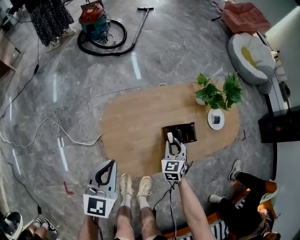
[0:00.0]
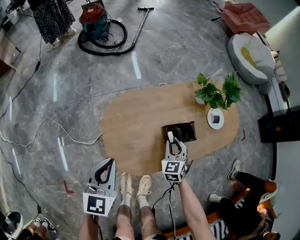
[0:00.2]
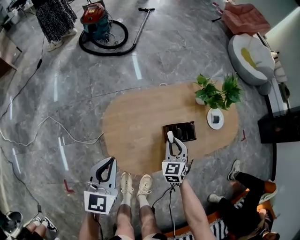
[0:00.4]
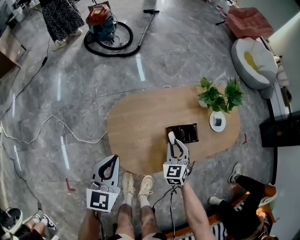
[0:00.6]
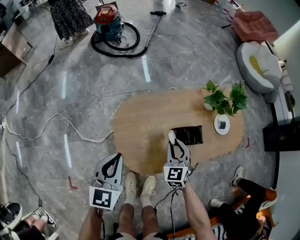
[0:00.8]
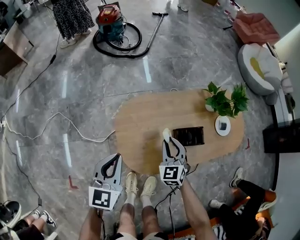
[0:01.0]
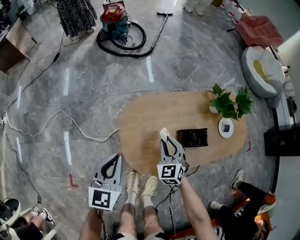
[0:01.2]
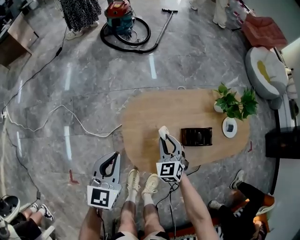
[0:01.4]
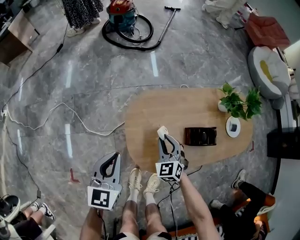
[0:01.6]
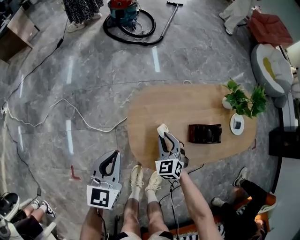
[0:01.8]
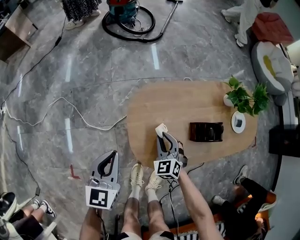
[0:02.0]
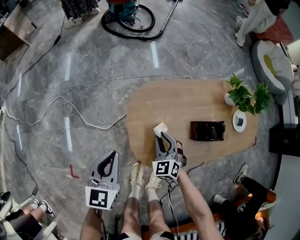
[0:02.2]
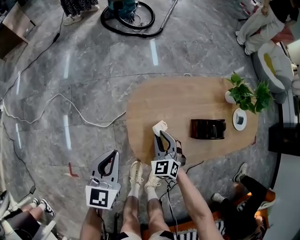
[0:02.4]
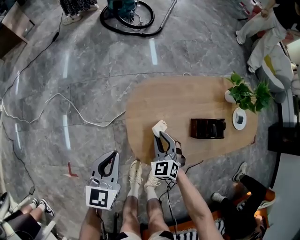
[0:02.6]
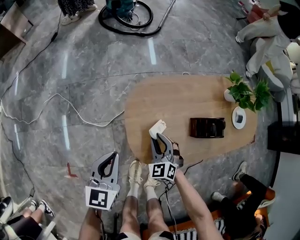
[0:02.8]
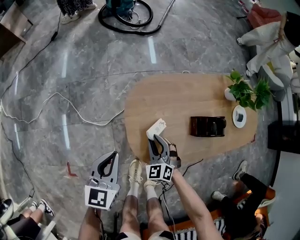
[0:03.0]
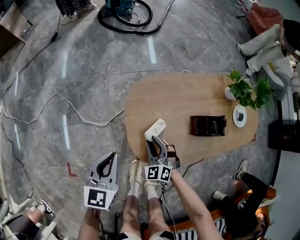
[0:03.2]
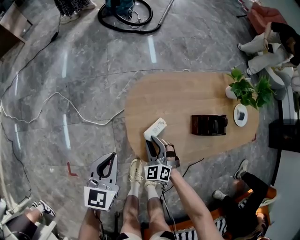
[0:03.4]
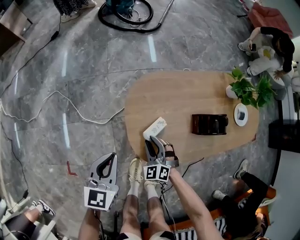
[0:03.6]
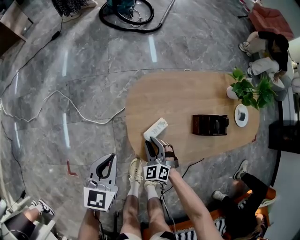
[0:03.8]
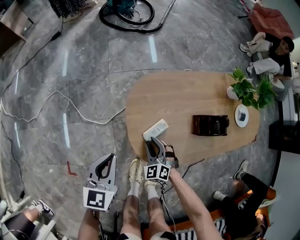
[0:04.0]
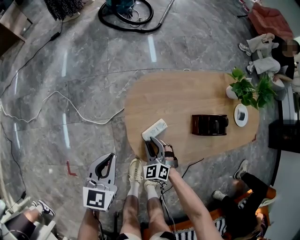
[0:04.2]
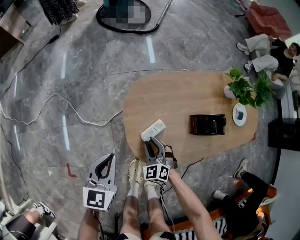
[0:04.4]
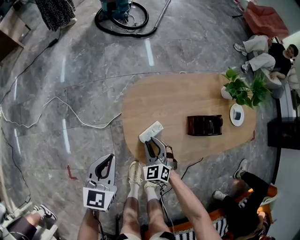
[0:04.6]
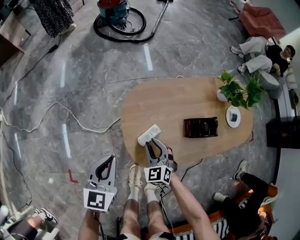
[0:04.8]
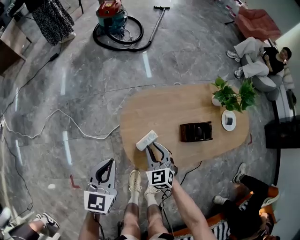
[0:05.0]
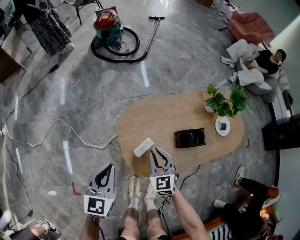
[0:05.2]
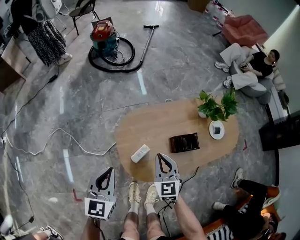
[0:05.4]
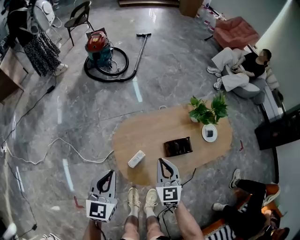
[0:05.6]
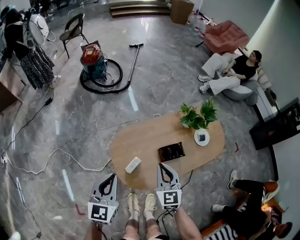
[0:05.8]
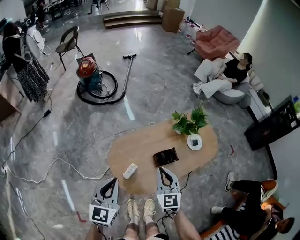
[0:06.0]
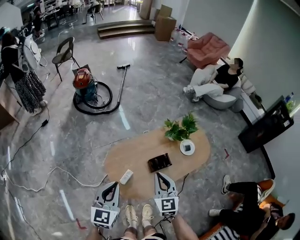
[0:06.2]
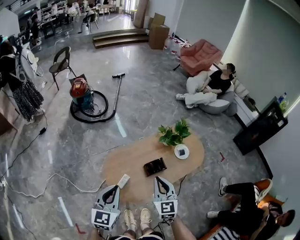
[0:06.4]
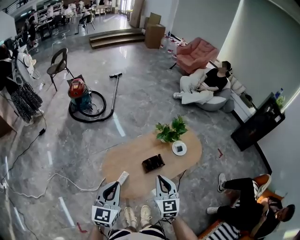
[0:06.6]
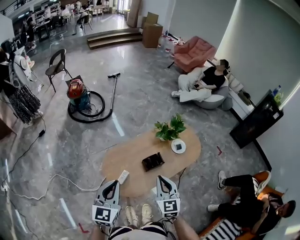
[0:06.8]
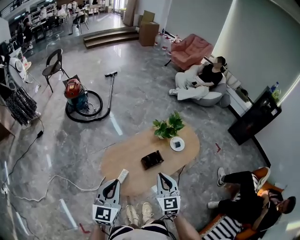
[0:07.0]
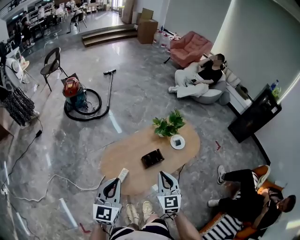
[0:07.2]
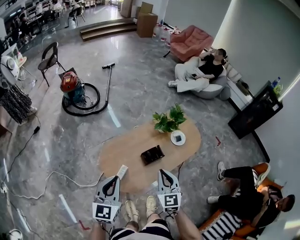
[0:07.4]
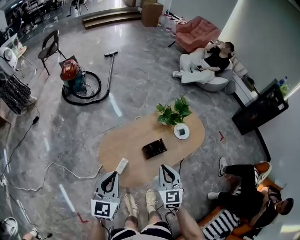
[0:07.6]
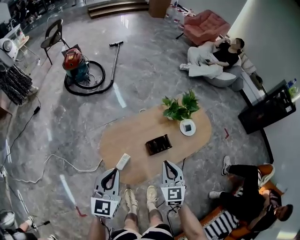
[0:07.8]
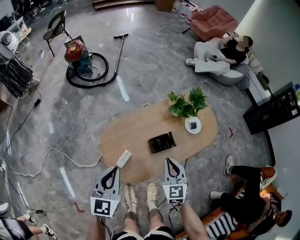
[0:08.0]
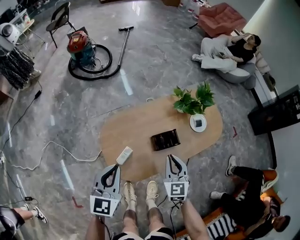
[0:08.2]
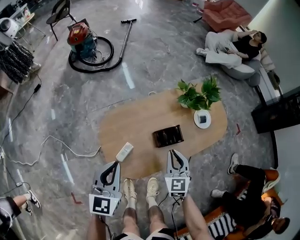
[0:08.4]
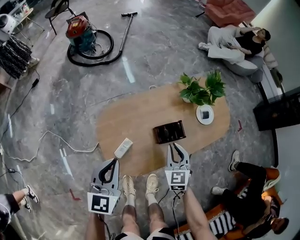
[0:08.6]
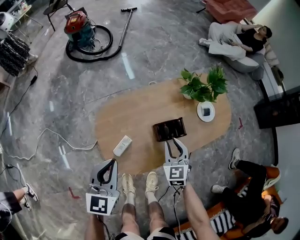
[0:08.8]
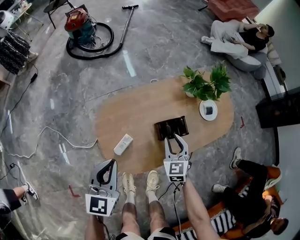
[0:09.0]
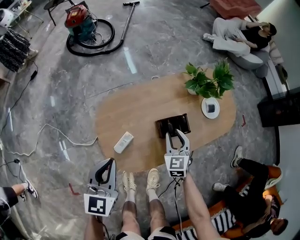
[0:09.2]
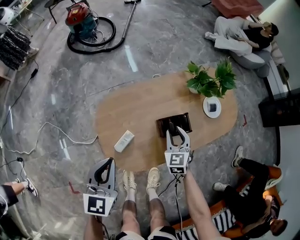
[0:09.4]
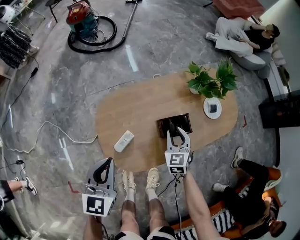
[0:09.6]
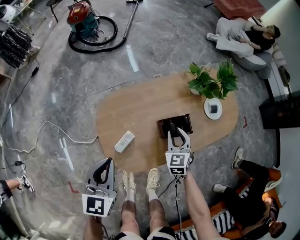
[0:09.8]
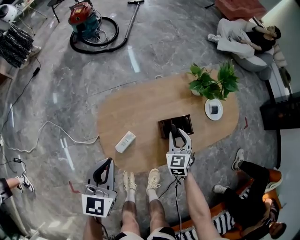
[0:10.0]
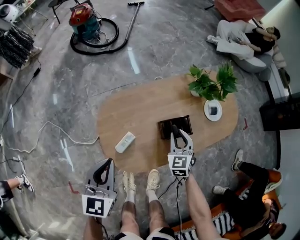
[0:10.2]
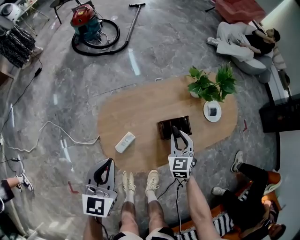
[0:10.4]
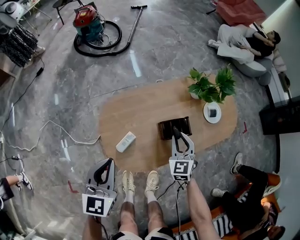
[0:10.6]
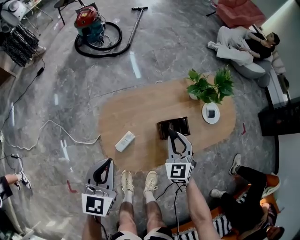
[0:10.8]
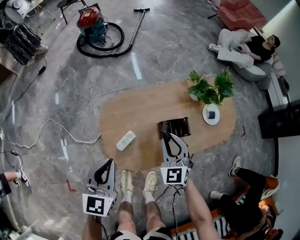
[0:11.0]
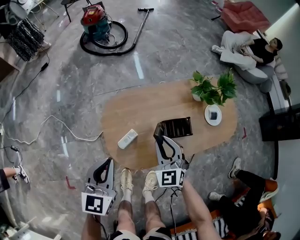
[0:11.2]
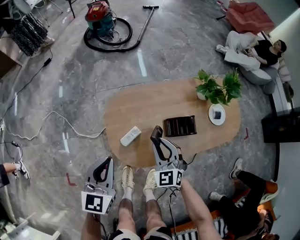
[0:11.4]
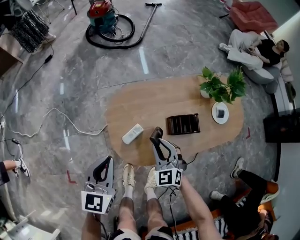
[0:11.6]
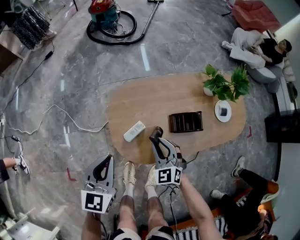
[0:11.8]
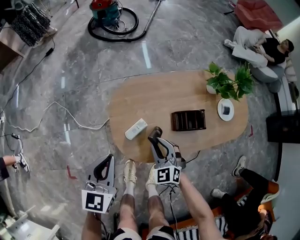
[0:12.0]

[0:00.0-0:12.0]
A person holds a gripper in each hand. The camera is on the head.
0:00.0 to 0:01.6: The right gripper is displaced to the left by roughly 15 cm, and rotates roughly 20 degrees; the left gripper heads to the left, covering about 10 cm.
0:01.6 to 0:03.0: The right gripper heads downward, backward and to the left, covering some 10 cm. Meanwhile the left gripper travels downward by some 5 cm.
0:03.0 to 0:04.4: The grippers stay close to where they were, moving slightly.
0:04.4 to 0:06.0: The left gripper is displaced upward by about 30 cm. The right gripper travels upward and to the right by roughly 40 cm, turns by roughly 50 degrees, and closes its fingers.
0:06.0 to 0:07.6: The right gripper heads to the right, covering about 5 cm, and travels upward and back again, roughly 10 cm each way. The left gripper goes upward and returns, approximately 10 cm each way.
0:07.6 to 0:09.0: The left gripper moves downward, roughly 20 cm. The right gripper moves downward and forward, roughly 30 cm, and opens its fingers.
0:09.0 to 0:10.4: There are only small adjustments of the grippers.
0:10.4 to 0:12.0: The right gripper shifts about 20 cm to the left and backward, and changes its angle by approximately 30 degrees; the left gripper heads backward, covering about 5 cm.

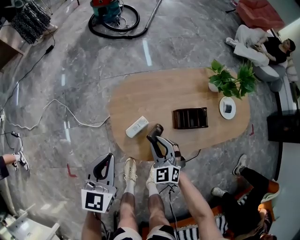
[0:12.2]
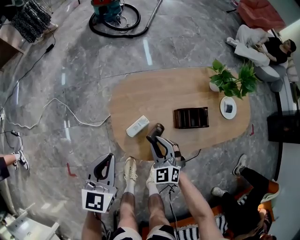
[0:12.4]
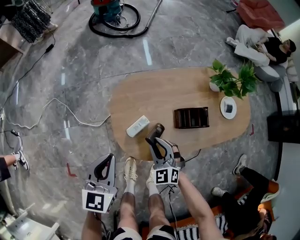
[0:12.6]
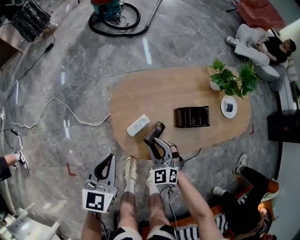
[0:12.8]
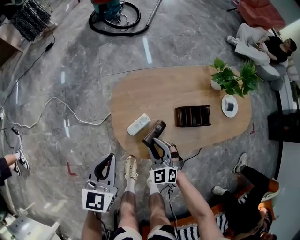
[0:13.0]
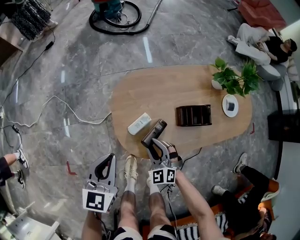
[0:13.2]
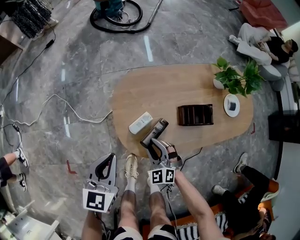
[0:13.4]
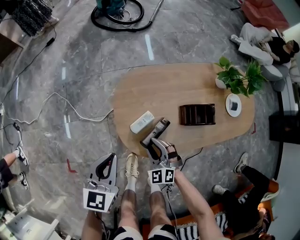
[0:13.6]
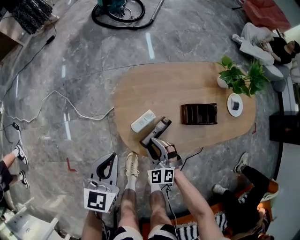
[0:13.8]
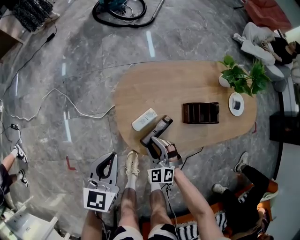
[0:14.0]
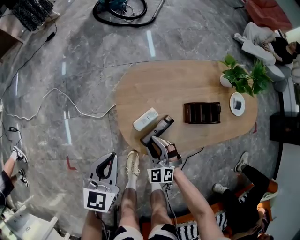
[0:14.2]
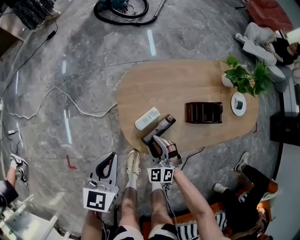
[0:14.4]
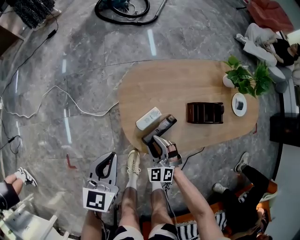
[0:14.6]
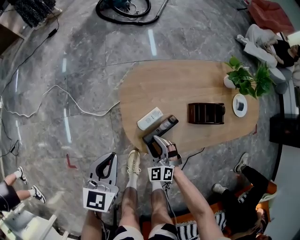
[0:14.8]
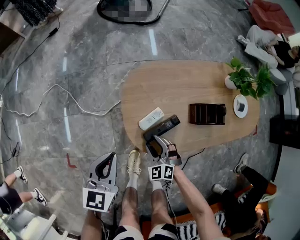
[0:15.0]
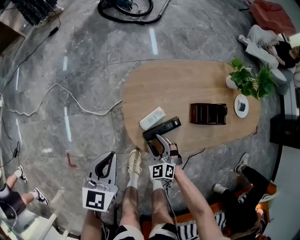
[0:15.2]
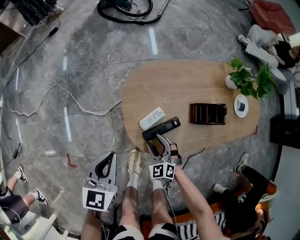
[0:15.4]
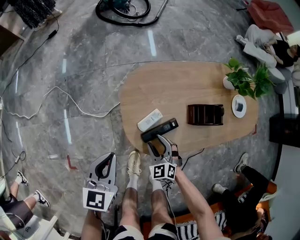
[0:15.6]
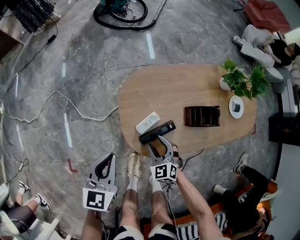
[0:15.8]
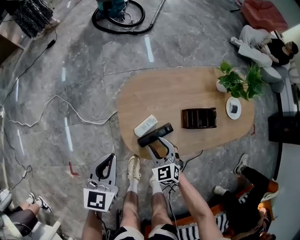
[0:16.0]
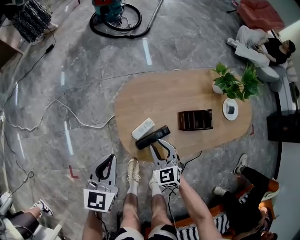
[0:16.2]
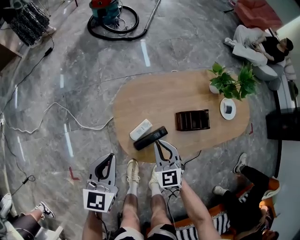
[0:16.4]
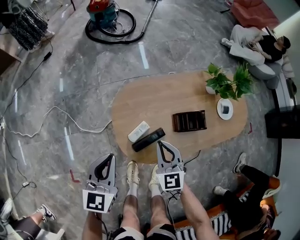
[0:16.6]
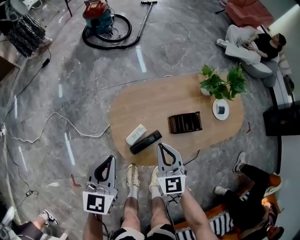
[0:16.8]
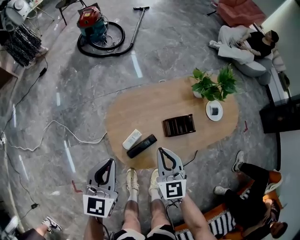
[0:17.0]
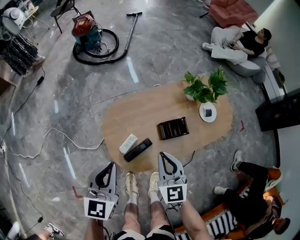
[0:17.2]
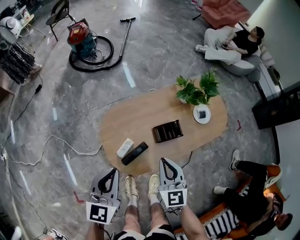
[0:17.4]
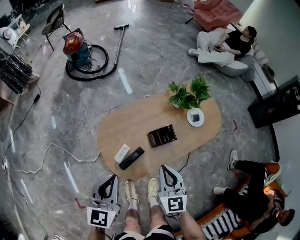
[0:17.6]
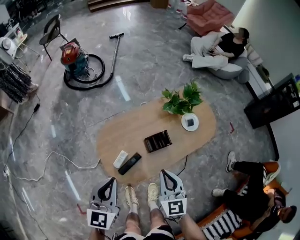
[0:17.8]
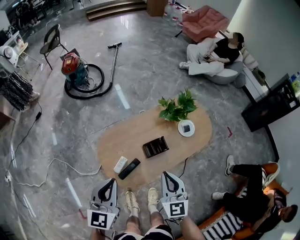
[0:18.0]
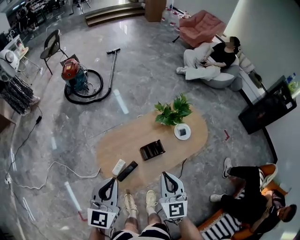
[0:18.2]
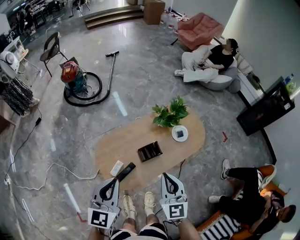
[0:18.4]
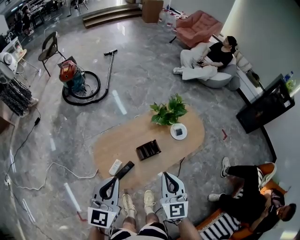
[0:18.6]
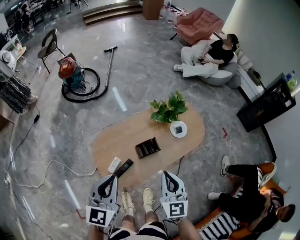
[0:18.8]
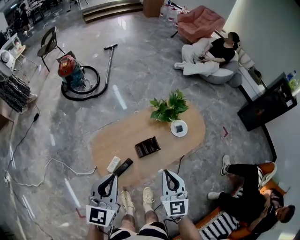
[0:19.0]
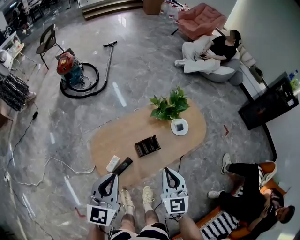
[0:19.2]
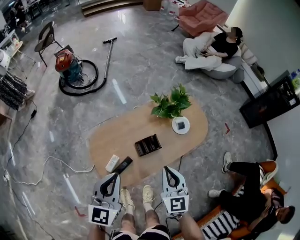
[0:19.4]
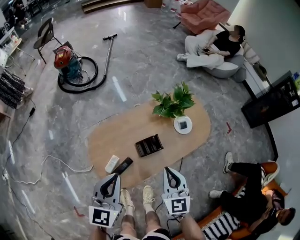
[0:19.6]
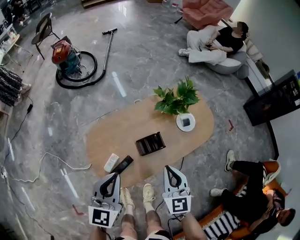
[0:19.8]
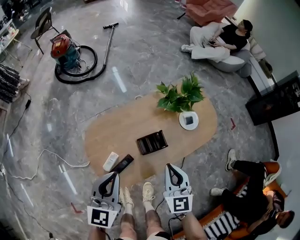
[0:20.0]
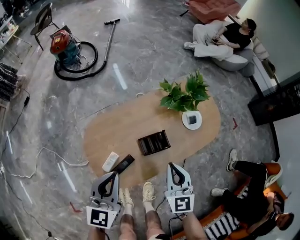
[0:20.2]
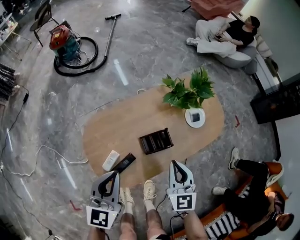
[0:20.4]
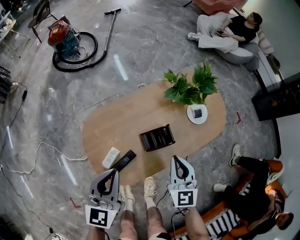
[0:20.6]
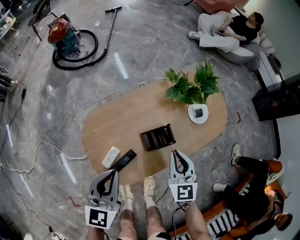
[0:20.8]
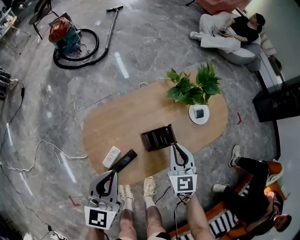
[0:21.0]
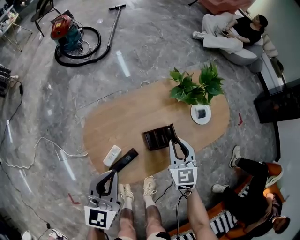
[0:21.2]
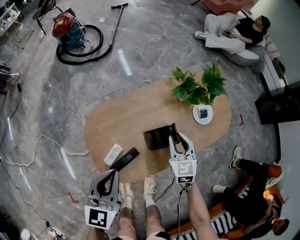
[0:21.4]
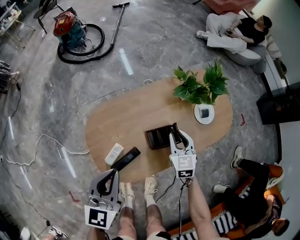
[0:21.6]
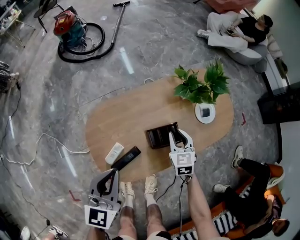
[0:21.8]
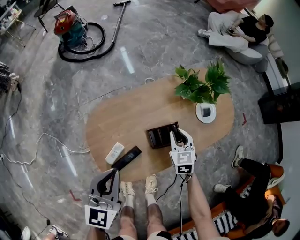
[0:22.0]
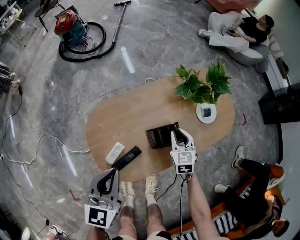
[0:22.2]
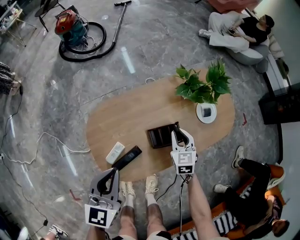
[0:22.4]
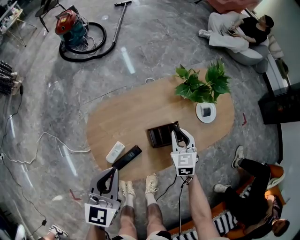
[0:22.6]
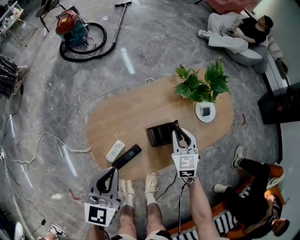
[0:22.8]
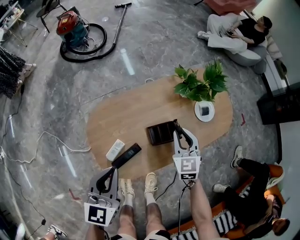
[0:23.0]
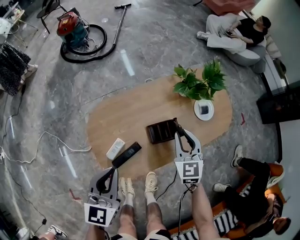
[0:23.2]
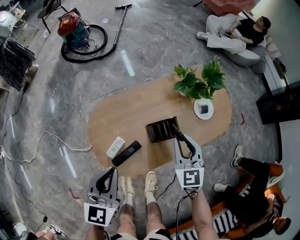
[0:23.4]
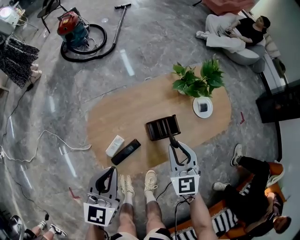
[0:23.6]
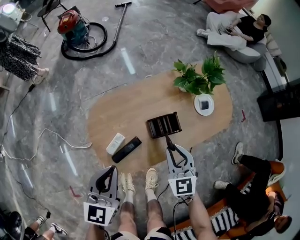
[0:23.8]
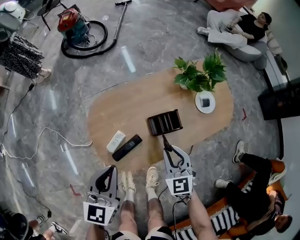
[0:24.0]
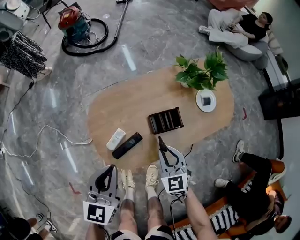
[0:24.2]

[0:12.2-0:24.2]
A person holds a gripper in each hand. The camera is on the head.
0:12.2 to 0:13.8: The right gripper heads downward and to the left, covering some 10 cm.
0:13.8 to 0:15.2: The left gripper moves some 5 cm, while the right gripper travels downward by roughly 5 cm.
0:15.2 to 0:16.6: The left gripper travels upward and to the right by some 10 cm. Meanwhile the right gripper moves upward and to the right, some 20 cm, changes its angle by about 30 degrees, and closes its fingers.
0:16.6 to 0:18.2: Both grippers travel together upward and to the right, some 30 cm. The right gripper turns by roughly 20 degrees.
0:18.2 to 0:19.8: The right gripper travels downward by approximately 10 cm. The left gripper goes approximately 10 cm downward and forward.
0:19.8 to 0:21.2: The right gripper shifts roughly 15 cm downward and forward. Meanwhile the left gripper goes some 10 cm downward.
0:21.2 to 0:22.6: The right gripper moves downward, some 5 cm.
0:22.6 to 0:24.2: The left gripper goes roughly 5 cm backward. Meanwhile the right gripper goes some 15 cm backward.
